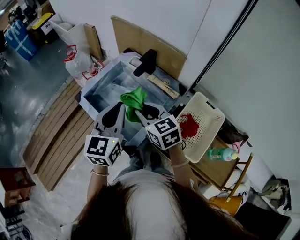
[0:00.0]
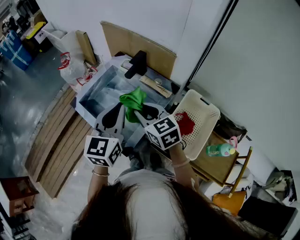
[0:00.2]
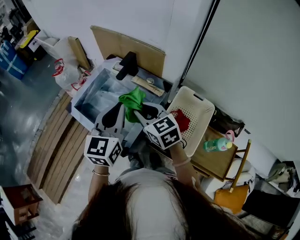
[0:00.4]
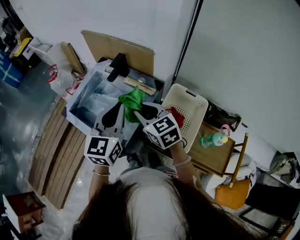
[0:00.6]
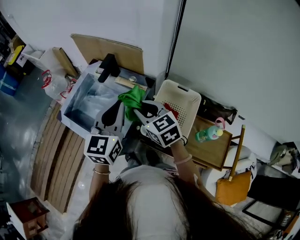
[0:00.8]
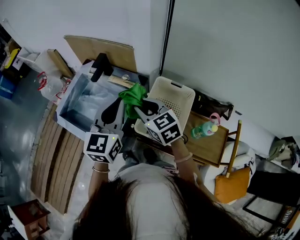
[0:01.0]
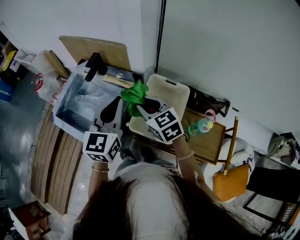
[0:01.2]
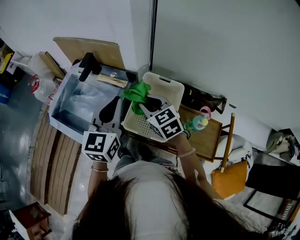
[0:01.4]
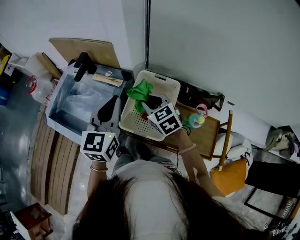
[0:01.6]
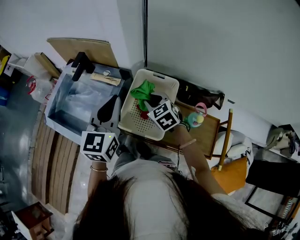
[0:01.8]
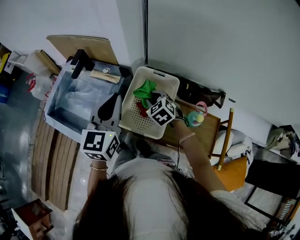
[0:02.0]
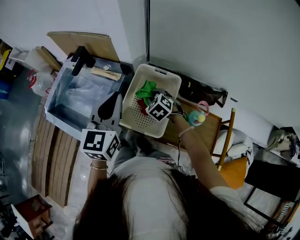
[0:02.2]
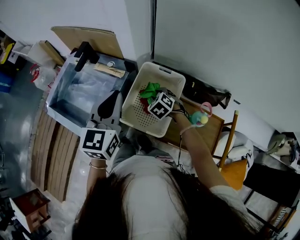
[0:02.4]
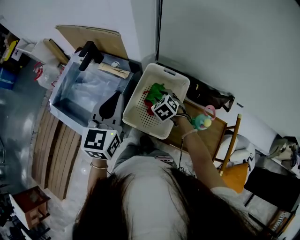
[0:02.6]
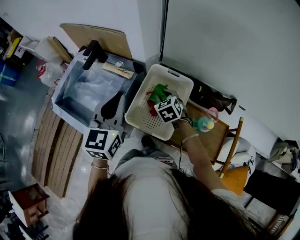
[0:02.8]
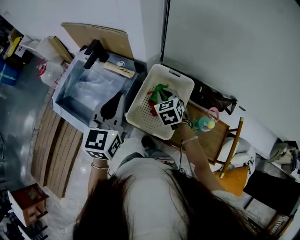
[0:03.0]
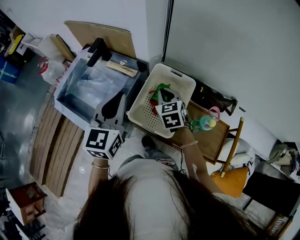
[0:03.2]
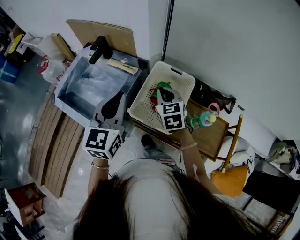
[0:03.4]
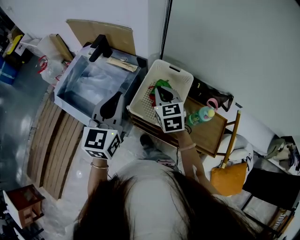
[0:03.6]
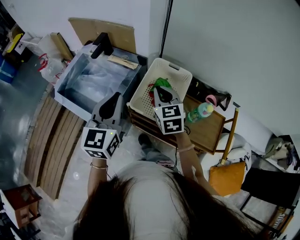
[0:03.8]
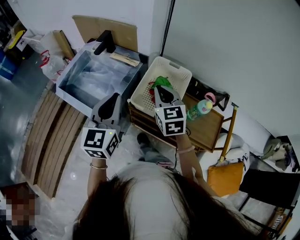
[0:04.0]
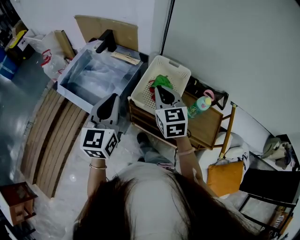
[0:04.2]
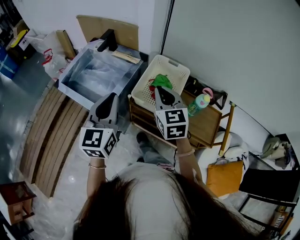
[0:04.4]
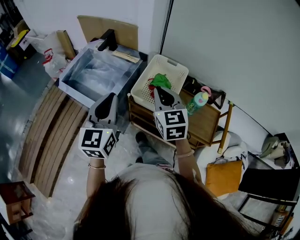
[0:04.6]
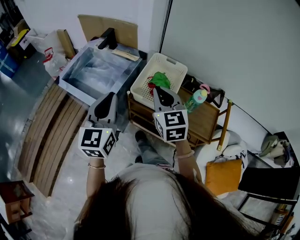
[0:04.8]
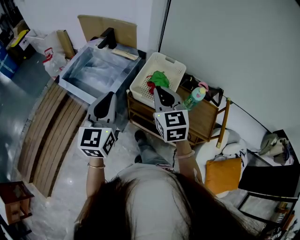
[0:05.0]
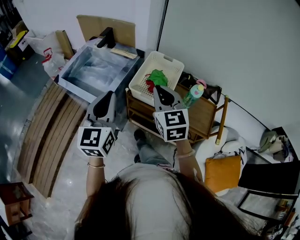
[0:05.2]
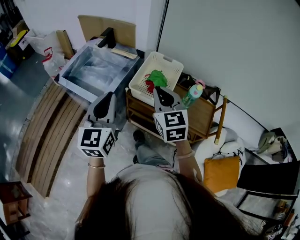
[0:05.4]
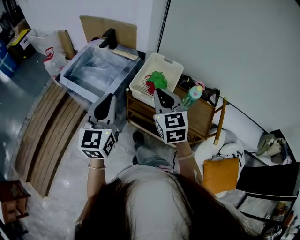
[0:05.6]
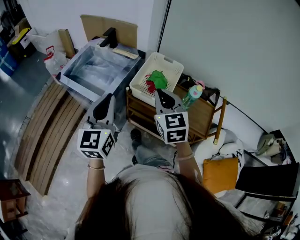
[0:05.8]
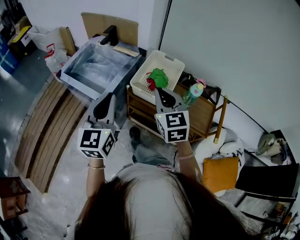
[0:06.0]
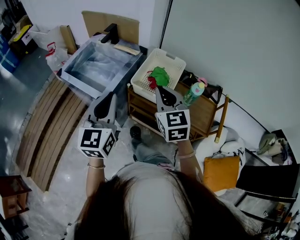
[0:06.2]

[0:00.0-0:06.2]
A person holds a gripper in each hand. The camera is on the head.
0:00.0 to 0:01.6: The grippers both shift to the right by approximately 25 cm. The right gripper changes its angle by roughly 20 degrees.
0:01.6 to 0:03.2: The right gripper reaches about 15 cm downward, then returns.
0:03.2 to 0:04.6: The left gripper moves backward, about 20 cm. The right gripper is displaced backward and upward by roughly 25 cm, and rotates about 20 degrees.
0:04.6 to 0:06.2: The two grippers go about 10 cm backward.

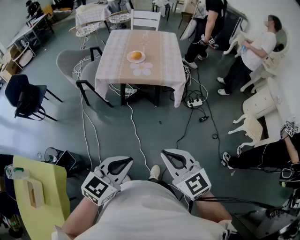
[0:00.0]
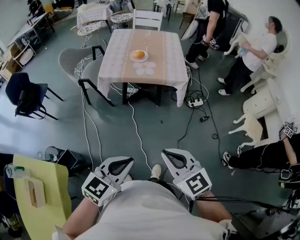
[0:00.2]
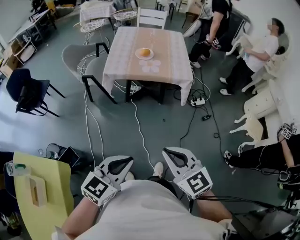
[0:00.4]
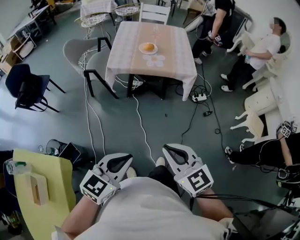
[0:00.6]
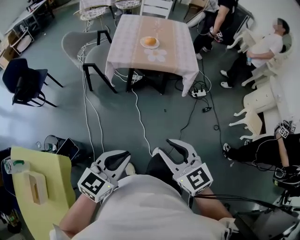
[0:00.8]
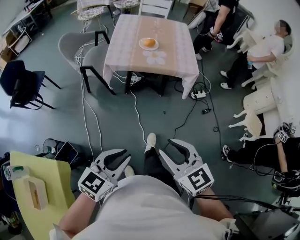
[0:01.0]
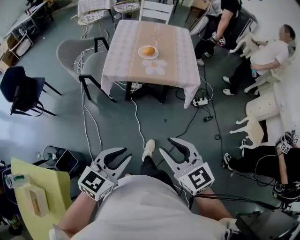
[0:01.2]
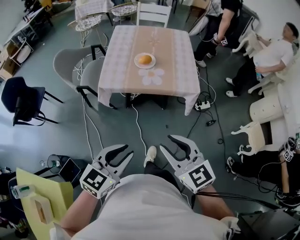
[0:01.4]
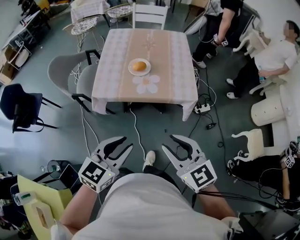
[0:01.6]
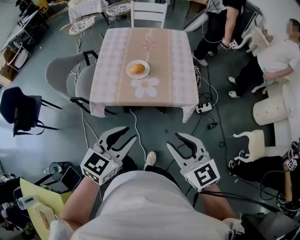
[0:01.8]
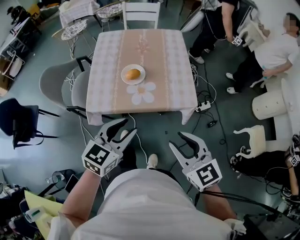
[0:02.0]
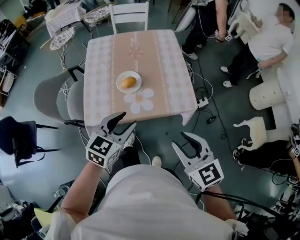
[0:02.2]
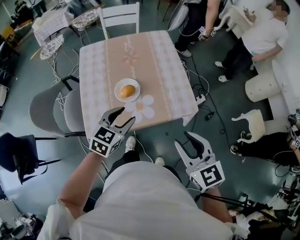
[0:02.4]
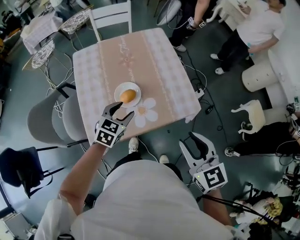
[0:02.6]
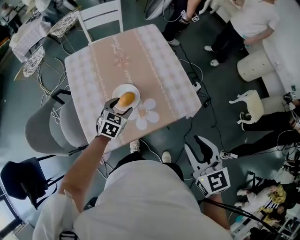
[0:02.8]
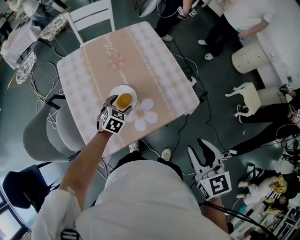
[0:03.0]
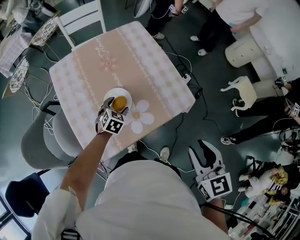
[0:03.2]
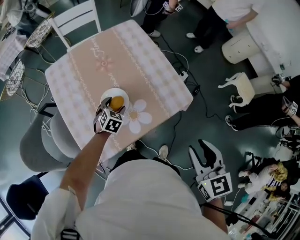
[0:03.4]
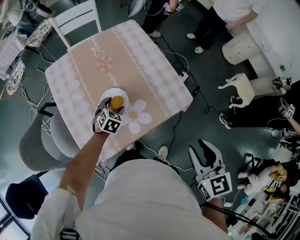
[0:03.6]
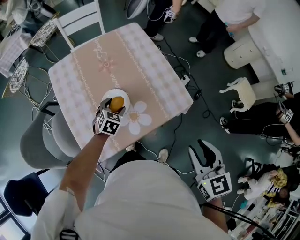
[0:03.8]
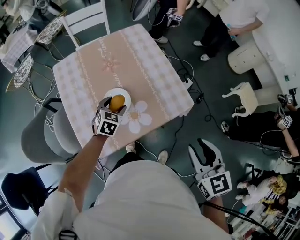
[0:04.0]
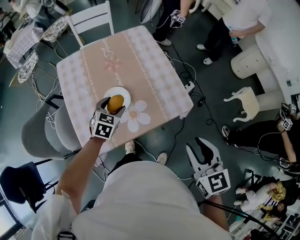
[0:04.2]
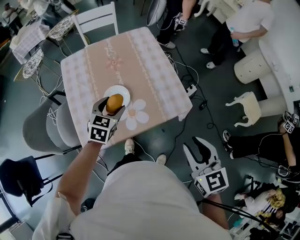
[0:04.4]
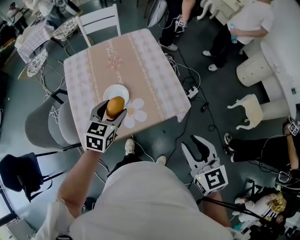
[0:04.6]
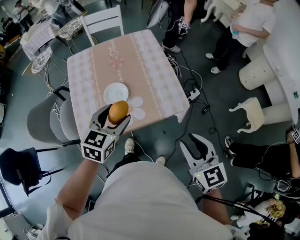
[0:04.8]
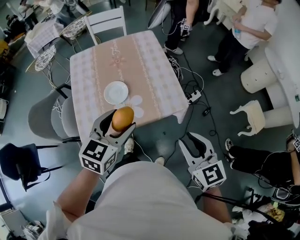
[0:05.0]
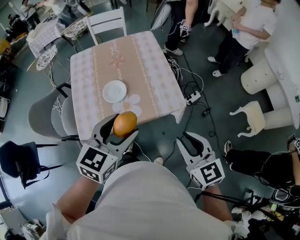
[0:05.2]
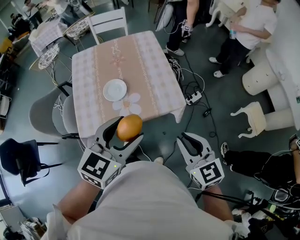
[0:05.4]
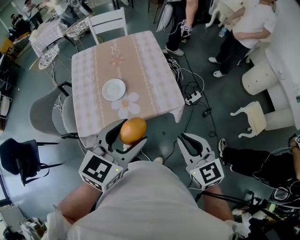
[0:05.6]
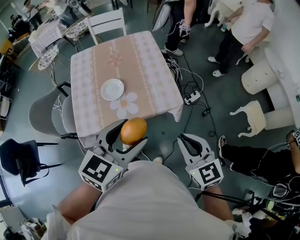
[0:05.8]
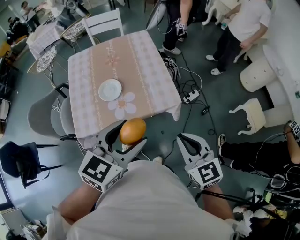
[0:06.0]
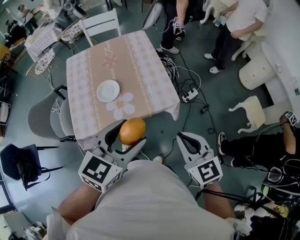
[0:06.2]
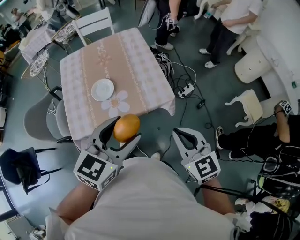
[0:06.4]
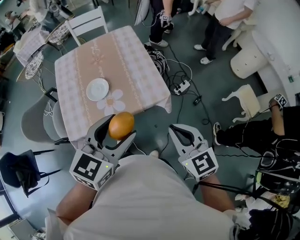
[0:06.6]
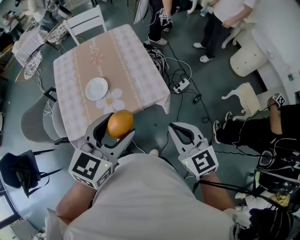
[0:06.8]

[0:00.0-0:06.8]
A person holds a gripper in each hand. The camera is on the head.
0:00.0 to 0:01.4: The right gripper is displaced forward by roughly 20 cm, and opens, while the left gripper travels forward and to the left by roughly 20 cm.
0:01.4 to 0:02.8: The right gripper moves roughly 30 cm, and swivels roughly 40 degrees. The left gripper ends up about 60 cm from where it was, changes its angle by some 30 degrees, and opens up.
0:02.8 to 0:04.0: The left gripper goes downward and returns, about 10 cm each way.
0:04.0 to 0:05.4: The right gripper is displaced to the right by some 5 cm, and swivels some 20 degrees, while the left gripper shifts about 40 cm upward, backward and to the right, and swivels some 30 degrees.
0:05.4 to 0:06.8: The grippers make only small movements.

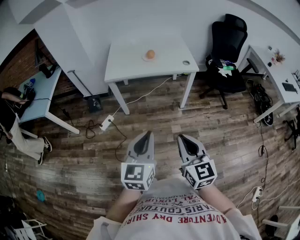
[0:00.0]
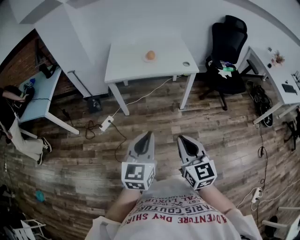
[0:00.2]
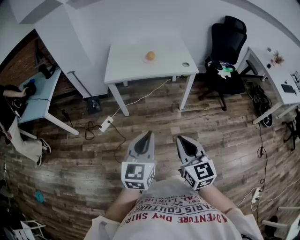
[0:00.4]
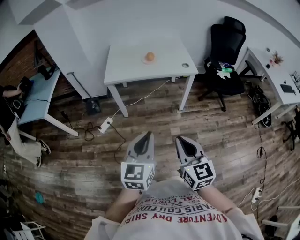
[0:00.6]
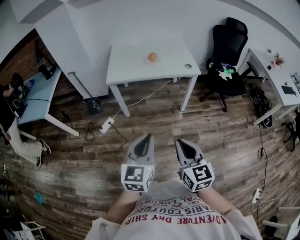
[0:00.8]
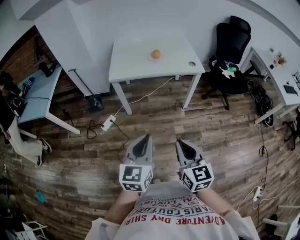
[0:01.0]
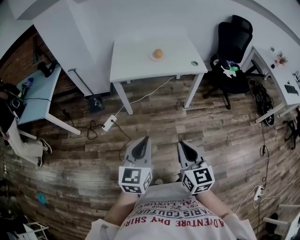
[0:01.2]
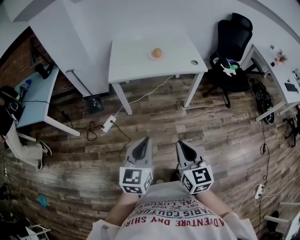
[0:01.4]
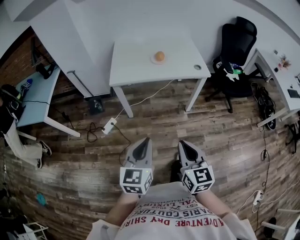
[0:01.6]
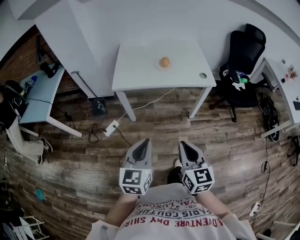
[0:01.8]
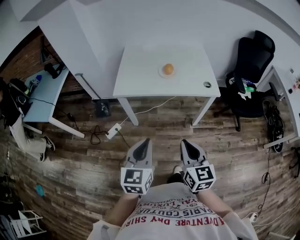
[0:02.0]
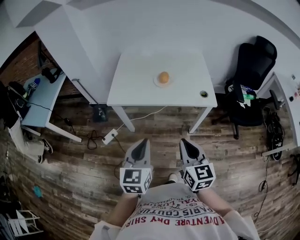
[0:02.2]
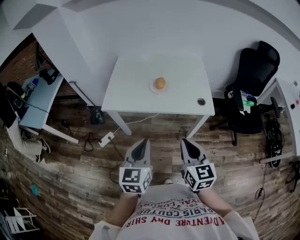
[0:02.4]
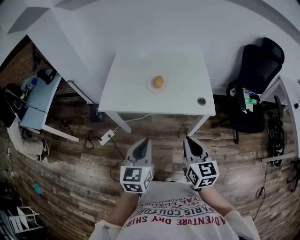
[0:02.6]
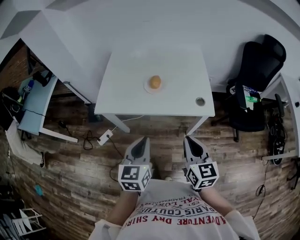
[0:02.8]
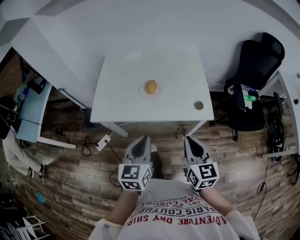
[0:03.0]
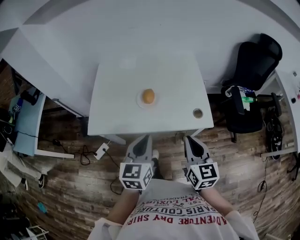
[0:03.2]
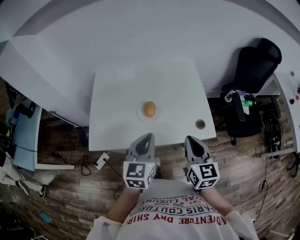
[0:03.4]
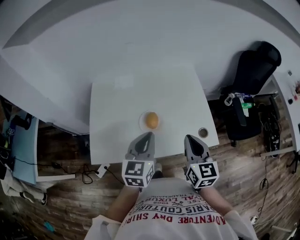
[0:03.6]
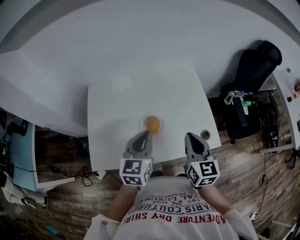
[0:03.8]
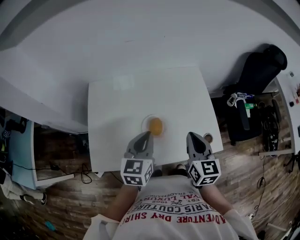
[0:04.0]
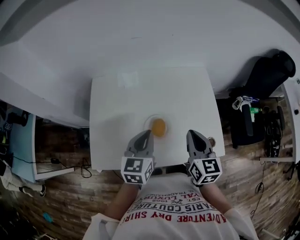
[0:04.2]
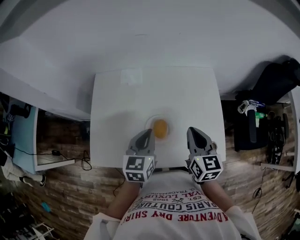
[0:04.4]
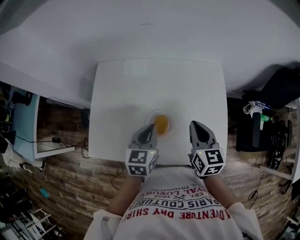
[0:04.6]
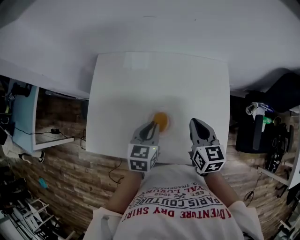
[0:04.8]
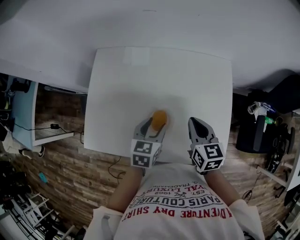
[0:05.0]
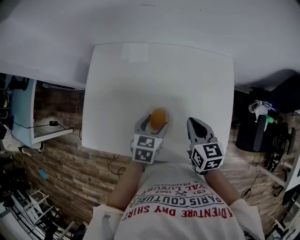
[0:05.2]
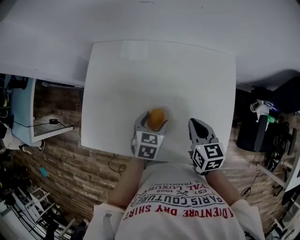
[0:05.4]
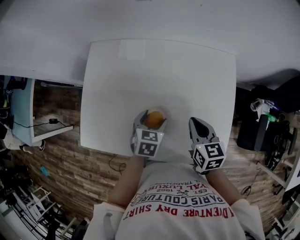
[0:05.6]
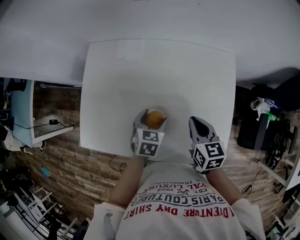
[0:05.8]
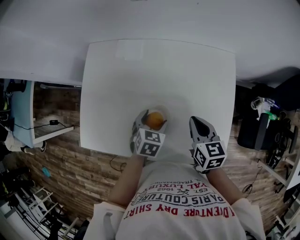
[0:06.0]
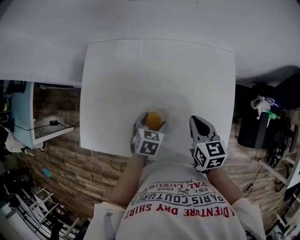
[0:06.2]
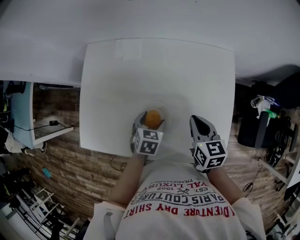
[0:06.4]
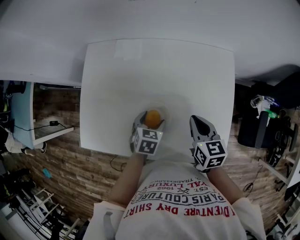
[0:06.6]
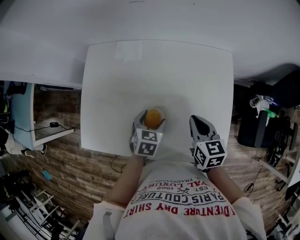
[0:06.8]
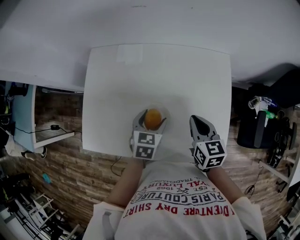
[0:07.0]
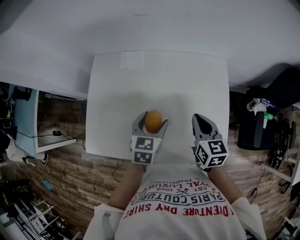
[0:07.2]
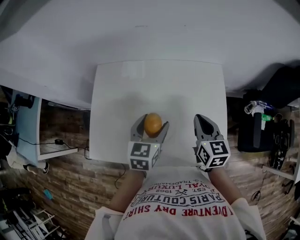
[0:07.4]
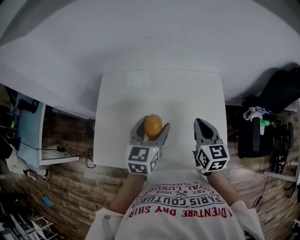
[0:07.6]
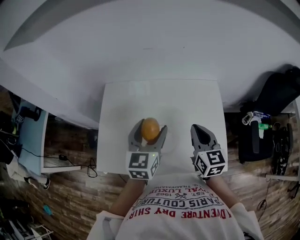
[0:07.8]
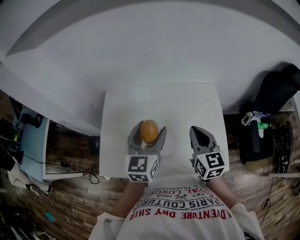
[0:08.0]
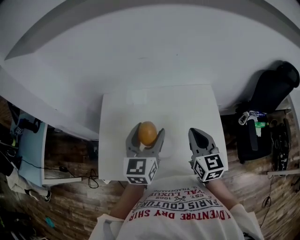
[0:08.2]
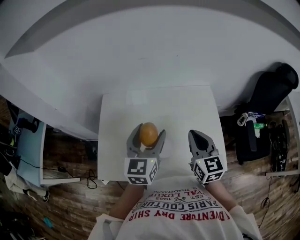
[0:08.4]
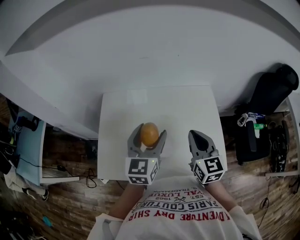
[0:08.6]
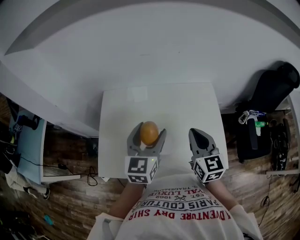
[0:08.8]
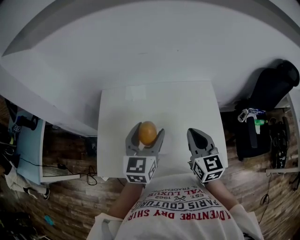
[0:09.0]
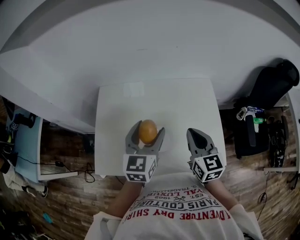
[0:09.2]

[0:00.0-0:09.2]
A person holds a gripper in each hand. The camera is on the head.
0:00.0 to 0:01.6: The left gripper is displaced to the left and forward by about 10 cm. Meanwhile the right gripper is displaced forward and to the left by roughly 10 cm.
0:01.6 to 0:03.0: Both grippers move forward and to the right, about 40 cm.
0:03.0 to 0:04.6: The grippers both shift forward by about 35 cm.
0:04.6 to 0:06.2: The right gripper heads downward, covering about 10 cm, while the left gripper shifts roughly 15 cm downward, turns by roughly 30 degrees, and opens its fingers.
0:06.2 to 0:07.6: The left gripper travels upward by about 25 cm, and angles its fingers upward, by some 40 degrees. Meanwhile the right gripper is displaced upward by about 10 cm.
0:07.6 to 0:09.2: The left gripper shifts by some 5 cm. Meanwhile the right gripper shifts by some 5 cm.

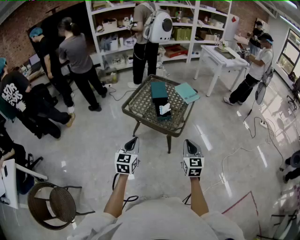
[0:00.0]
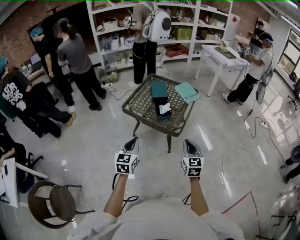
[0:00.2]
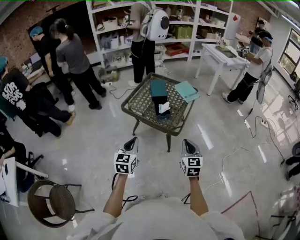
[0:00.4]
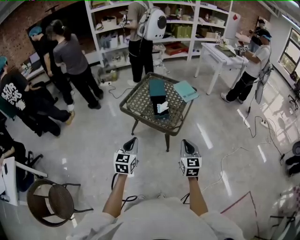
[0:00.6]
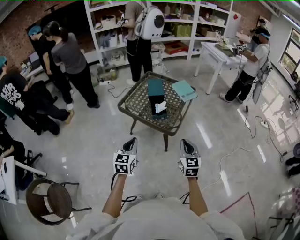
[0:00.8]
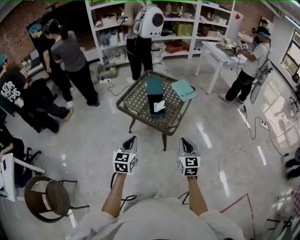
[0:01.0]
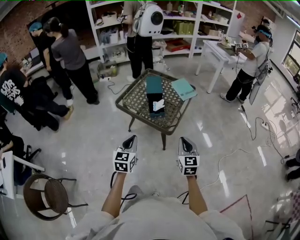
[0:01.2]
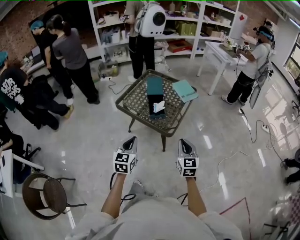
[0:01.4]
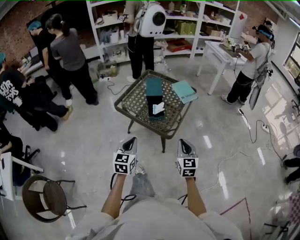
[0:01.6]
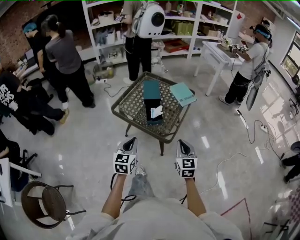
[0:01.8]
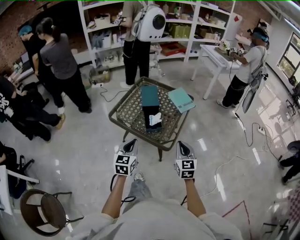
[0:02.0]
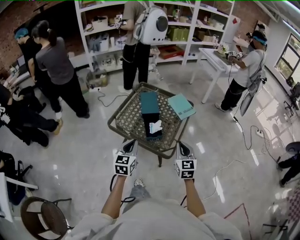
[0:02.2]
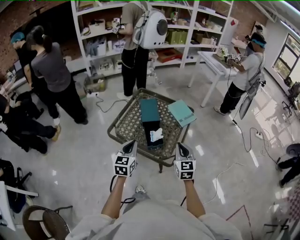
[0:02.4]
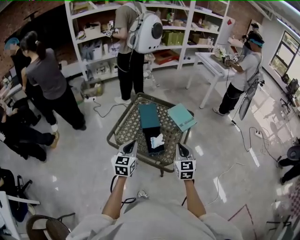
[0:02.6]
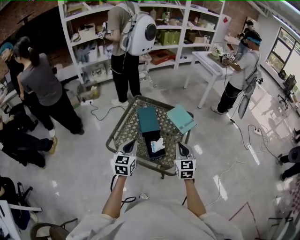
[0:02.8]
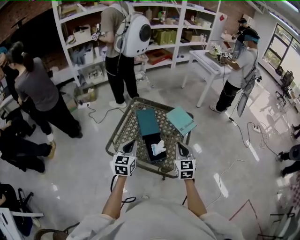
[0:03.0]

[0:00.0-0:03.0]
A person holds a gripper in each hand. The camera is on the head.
0:00.0 to 0:01.6: The right gripper moves forward and to the right, some 10 cm; the left gripper is displaced to the right and forward by about 10 cm.
0:01.6 to 0:03.0: The grippers both shift forward by some 30 cm.
